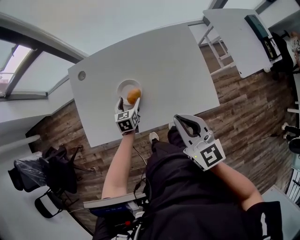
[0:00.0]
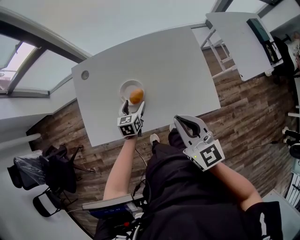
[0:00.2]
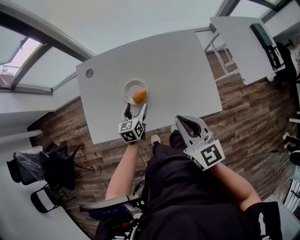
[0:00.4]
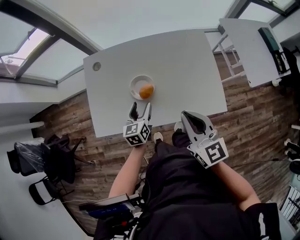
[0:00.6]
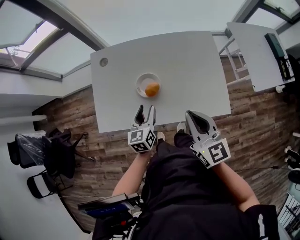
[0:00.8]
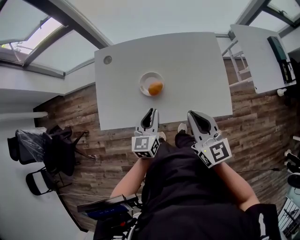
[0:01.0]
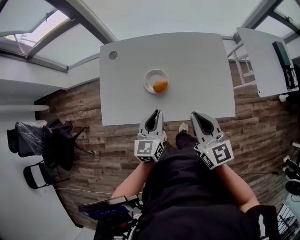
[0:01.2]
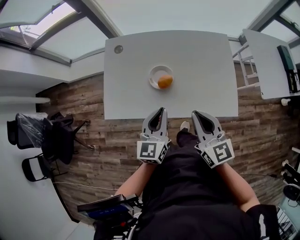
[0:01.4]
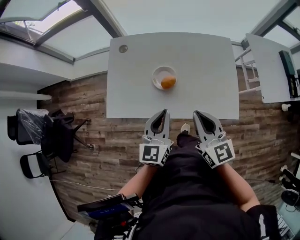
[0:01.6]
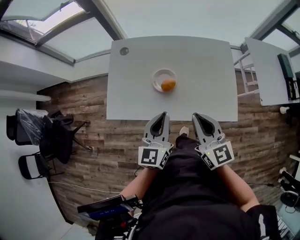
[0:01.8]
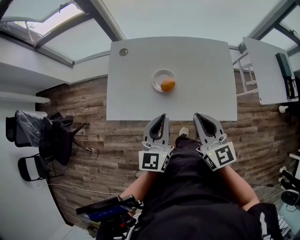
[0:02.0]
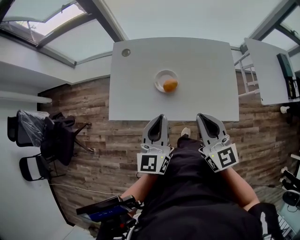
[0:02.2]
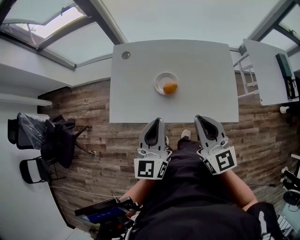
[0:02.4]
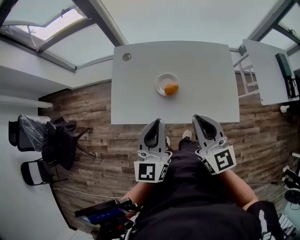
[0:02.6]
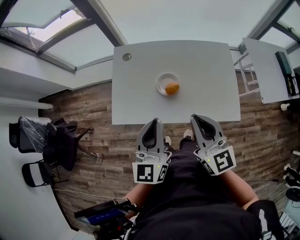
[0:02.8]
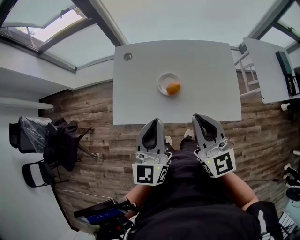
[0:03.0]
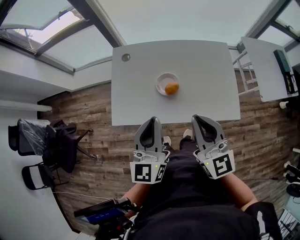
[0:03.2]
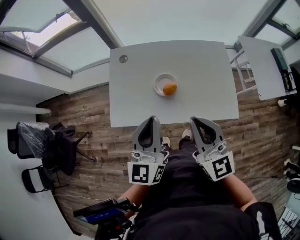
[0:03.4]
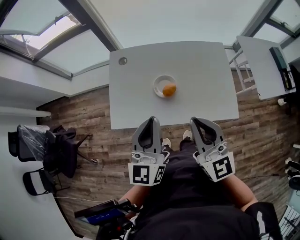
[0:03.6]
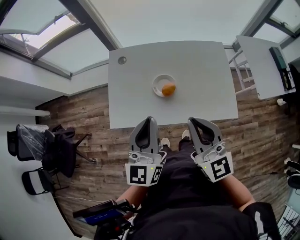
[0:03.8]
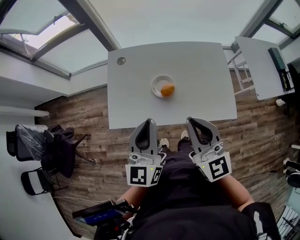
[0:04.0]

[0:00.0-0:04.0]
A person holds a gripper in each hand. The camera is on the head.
0.0 to 1.4 s: The left gripper goes about 25 cm upward and backward, turns by some 30 degrees, and closes up; the right gripper shifts by about 5 cm.
1.4 to 2.6 s: The left gripper moves upward and to the left, roughly 10 cm; the right gripper heads upward, covering some 5 cm.
2.6 to 4.0 s: The grippers make only small movements.

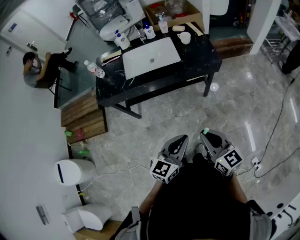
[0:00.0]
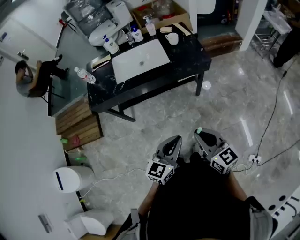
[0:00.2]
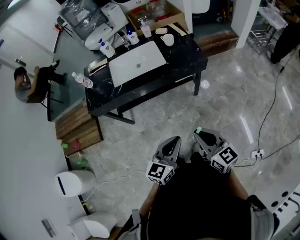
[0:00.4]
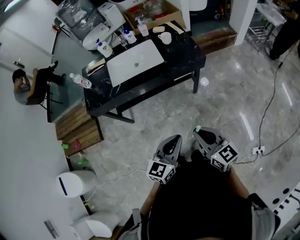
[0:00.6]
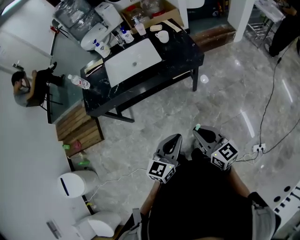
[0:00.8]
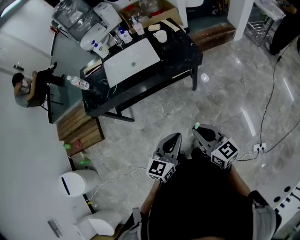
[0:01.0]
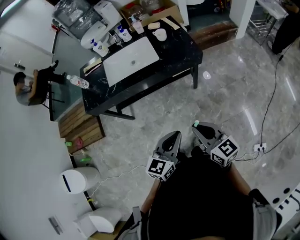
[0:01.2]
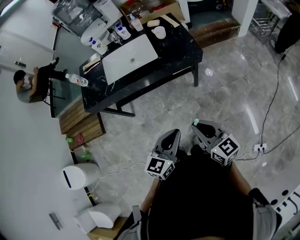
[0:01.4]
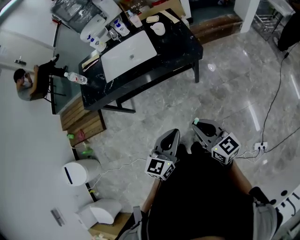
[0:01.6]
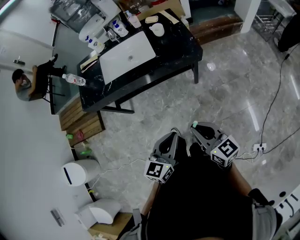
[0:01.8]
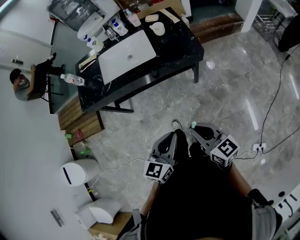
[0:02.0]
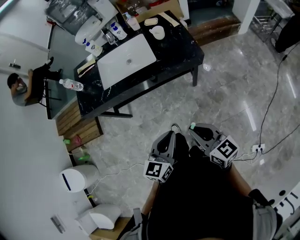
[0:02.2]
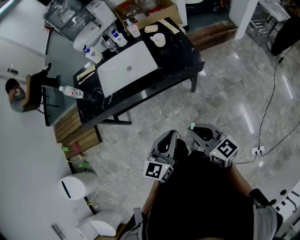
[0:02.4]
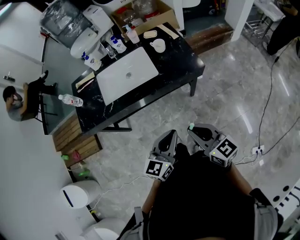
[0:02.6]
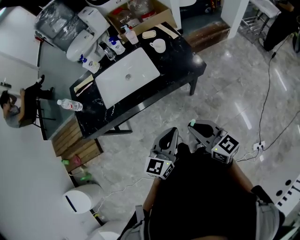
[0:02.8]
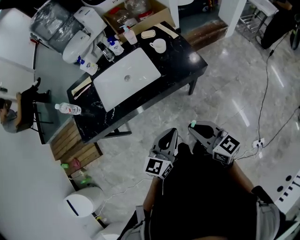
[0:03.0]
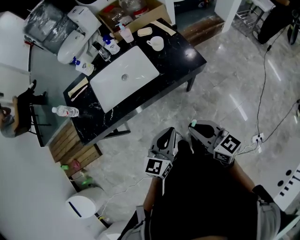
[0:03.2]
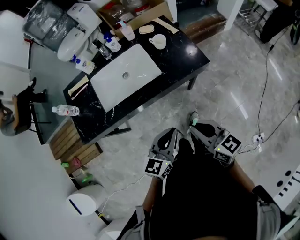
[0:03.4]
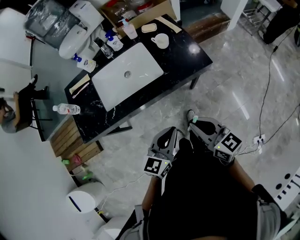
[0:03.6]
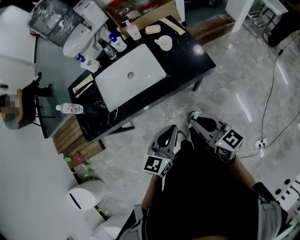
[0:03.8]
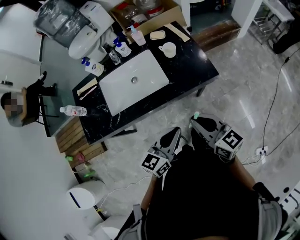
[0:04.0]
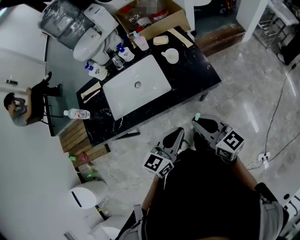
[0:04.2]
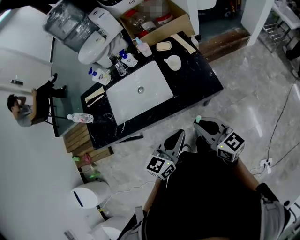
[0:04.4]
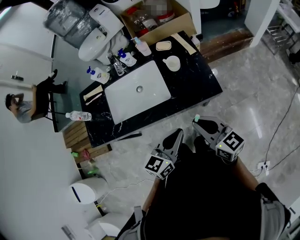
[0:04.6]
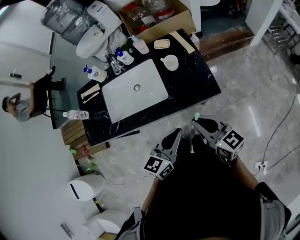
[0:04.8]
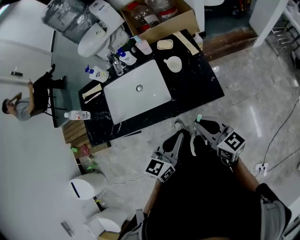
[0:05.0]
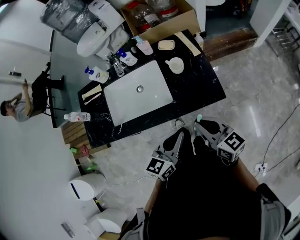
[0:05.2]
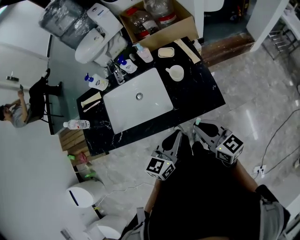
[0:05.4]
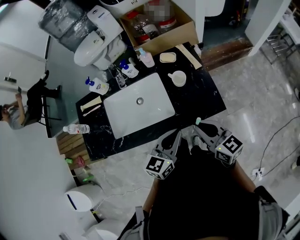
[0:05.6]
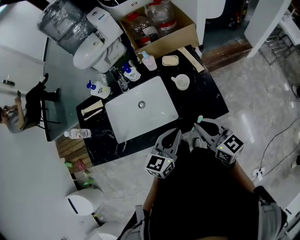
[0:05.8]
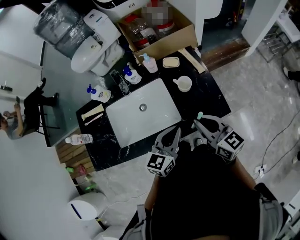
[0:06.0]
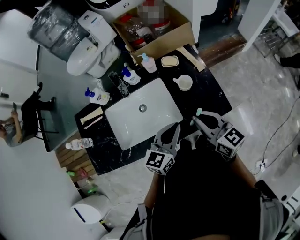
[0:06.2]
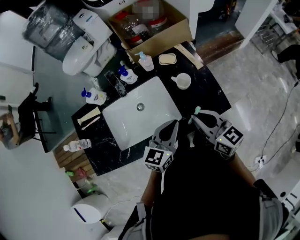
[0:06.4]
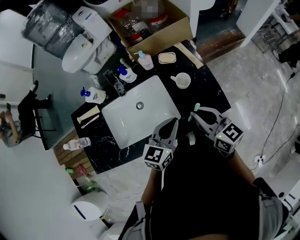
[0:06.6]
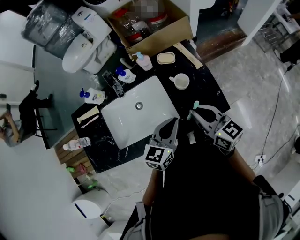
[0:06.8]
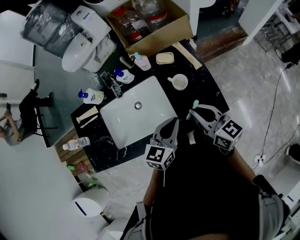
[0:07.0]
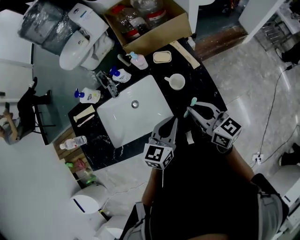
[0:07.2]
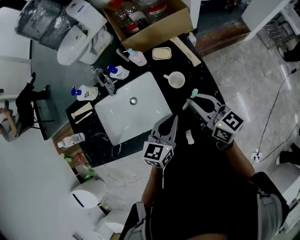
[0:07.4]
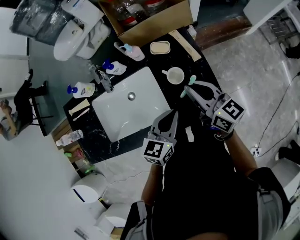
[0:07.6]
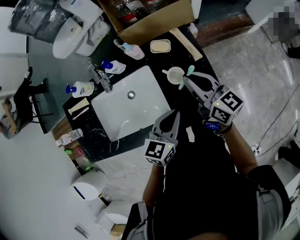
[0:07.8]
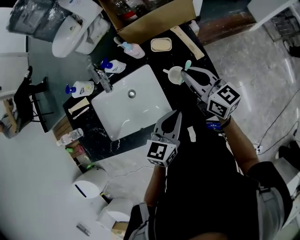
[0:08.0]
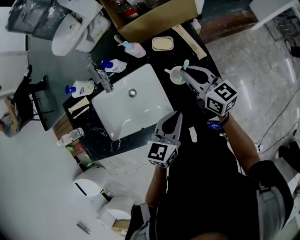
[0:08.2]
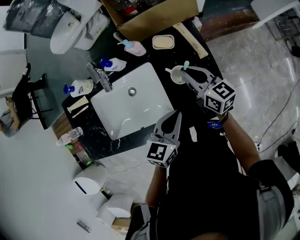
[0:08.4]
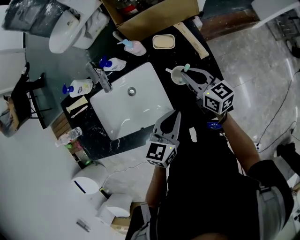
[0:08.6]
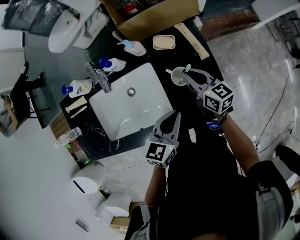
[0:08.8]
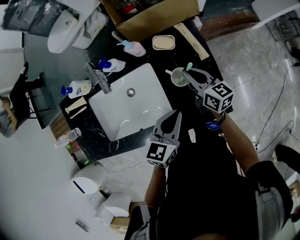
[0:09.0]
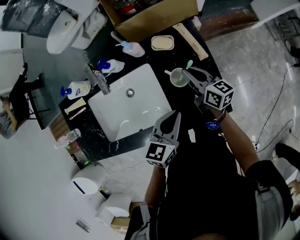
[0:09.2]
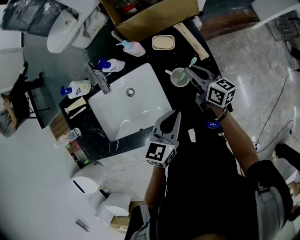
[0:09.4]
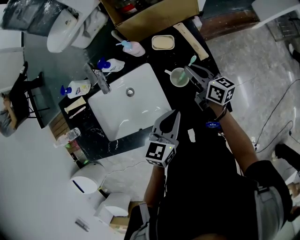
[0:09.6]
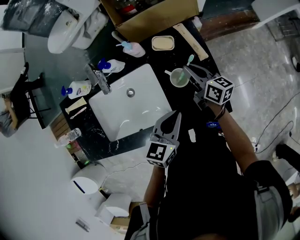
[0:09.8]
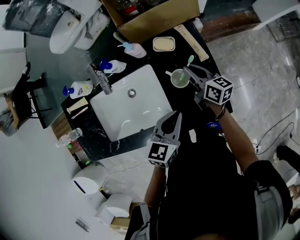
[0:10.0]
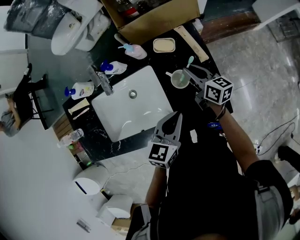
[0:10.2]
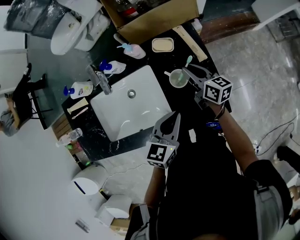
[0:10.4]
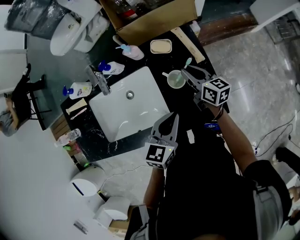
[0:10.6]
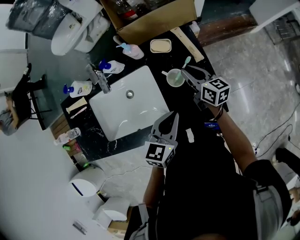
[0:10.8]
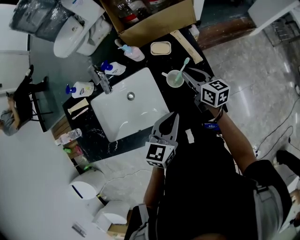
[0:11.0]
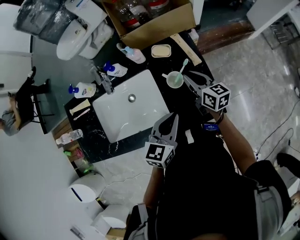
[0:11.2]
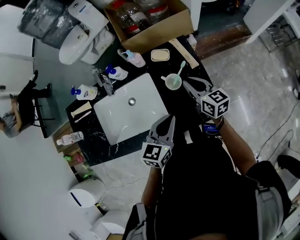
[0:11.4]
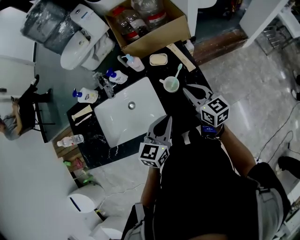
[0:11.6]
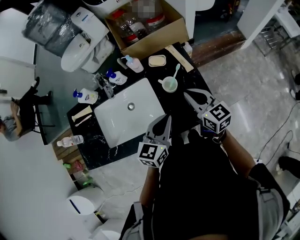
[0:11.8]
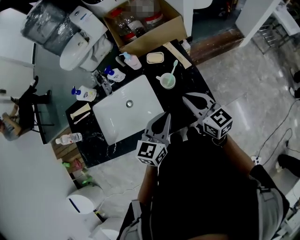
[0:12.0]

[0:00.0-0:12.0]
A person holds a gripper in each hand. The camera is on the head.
0.0 to 1.6 s: Both grippers move to the right, approximately 5 cm.
1.6 to 3.0 s: Both grippers move forward and to the left, some 20 cm.
3.0 to 4.4 s: The left gripper travels forward and to the right by roughly 15 cm, while the right gripper is displaced forward by approximately 15 cm.
4.4 to 6.0 s: The grippers both shift forward by approximately 15 cm.
6.0 to 7.6 s: The right gripper shifts about 15 cm forward. The left gripper moves forward and to the right, about 10 cm.
7.6 to 9.0 s: The right gripper goes roughly 15 cm downward and forward.
9.0 to 10.4 s: The grippers stay close to where they were, moving slightly.
10.4 to 12.0 s: The left gripper shifts about 5 cm upward; the right gripper goes some 20 cm backward and upward, and rotates some 30 degrees.

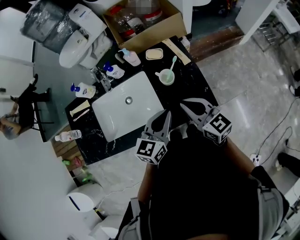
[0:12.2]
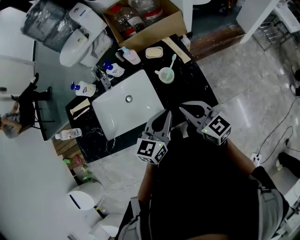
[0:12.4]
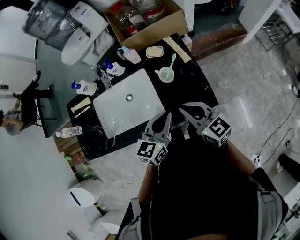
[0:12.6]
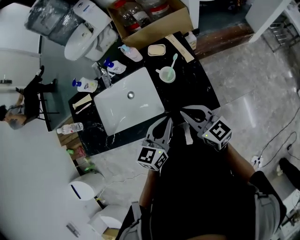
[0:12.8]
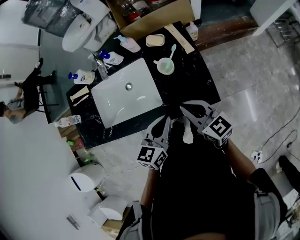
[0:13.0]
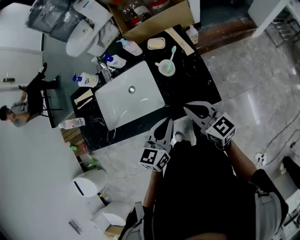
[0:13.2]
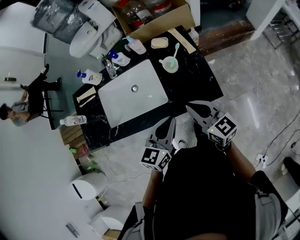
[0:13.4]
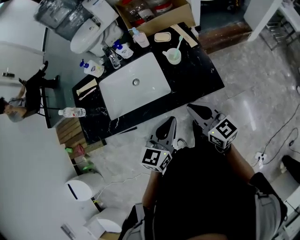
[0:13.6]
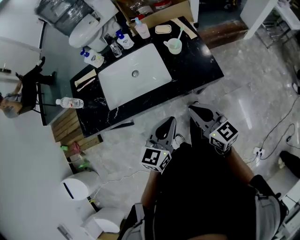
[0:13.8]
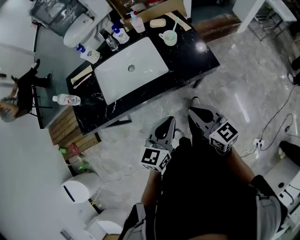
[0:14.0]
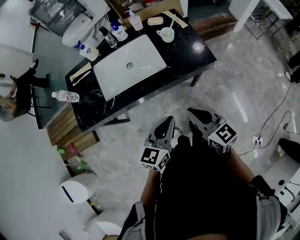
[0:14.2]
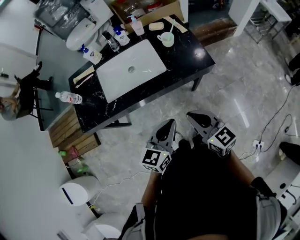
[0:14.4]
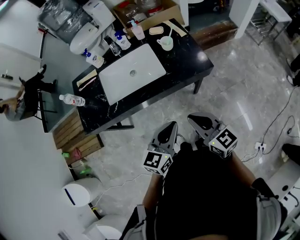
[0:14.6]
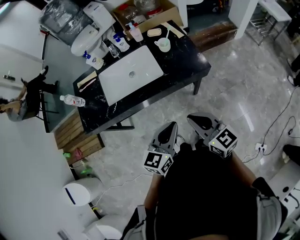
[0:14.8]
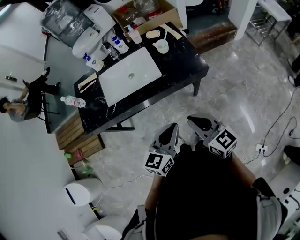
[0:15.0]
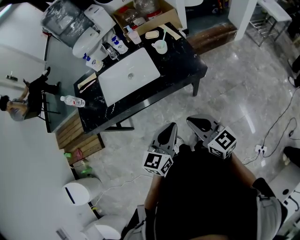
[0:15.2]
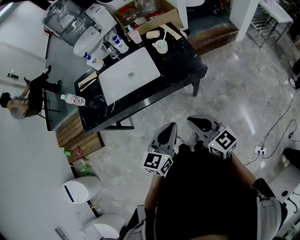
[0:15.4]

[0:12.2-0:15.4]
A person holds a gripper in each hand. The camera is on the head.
12.2 to 13.8 s: The left gripper heads backward and to the left, covering some 20 cm. Meanwhile the right gripper shifts approximately 20 cm backward.
13.8 to 15.4 s: Both grippers move backward, some 15 cm.

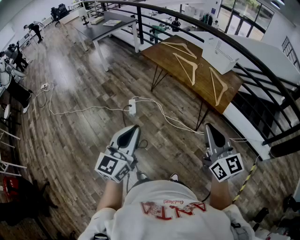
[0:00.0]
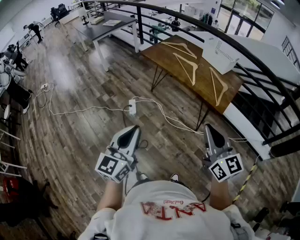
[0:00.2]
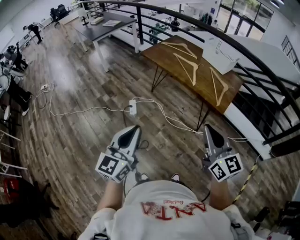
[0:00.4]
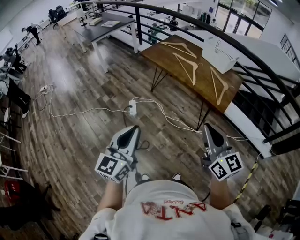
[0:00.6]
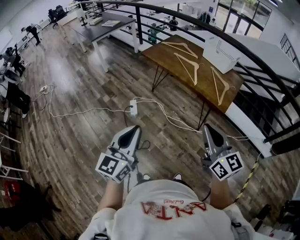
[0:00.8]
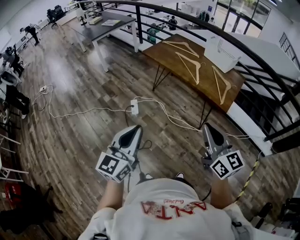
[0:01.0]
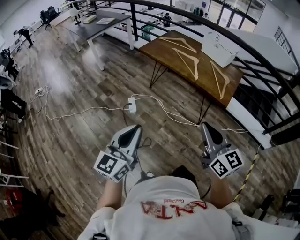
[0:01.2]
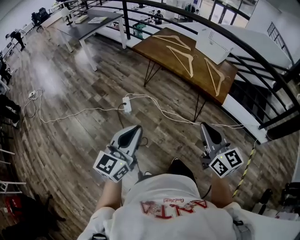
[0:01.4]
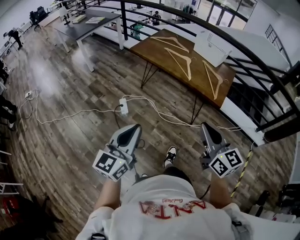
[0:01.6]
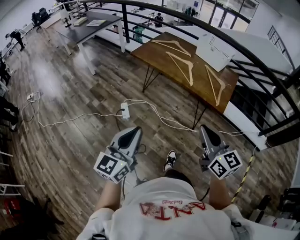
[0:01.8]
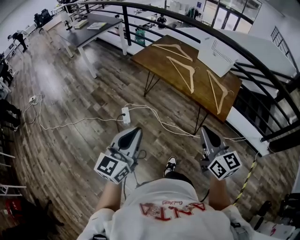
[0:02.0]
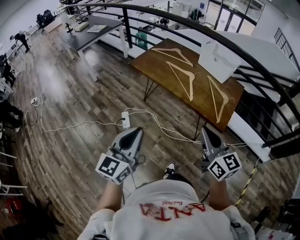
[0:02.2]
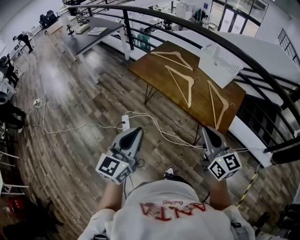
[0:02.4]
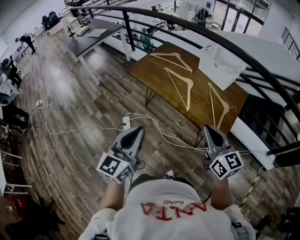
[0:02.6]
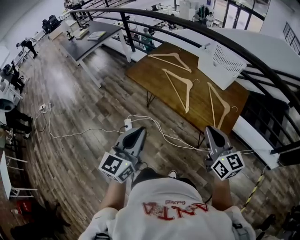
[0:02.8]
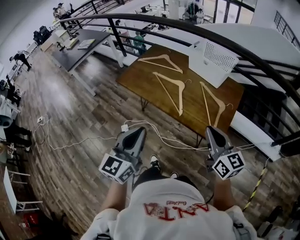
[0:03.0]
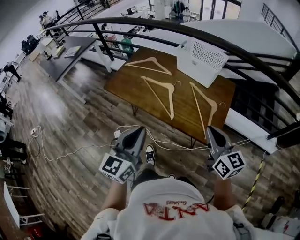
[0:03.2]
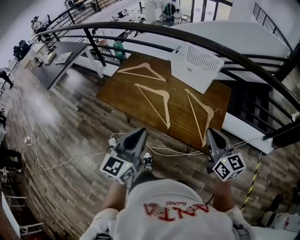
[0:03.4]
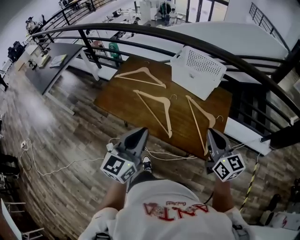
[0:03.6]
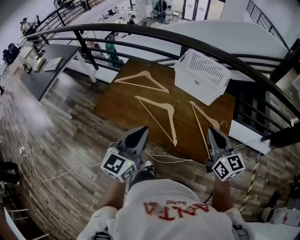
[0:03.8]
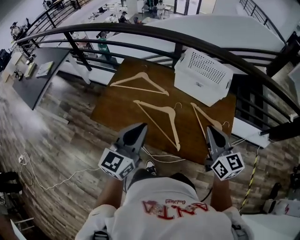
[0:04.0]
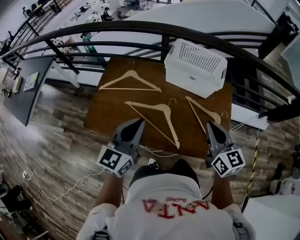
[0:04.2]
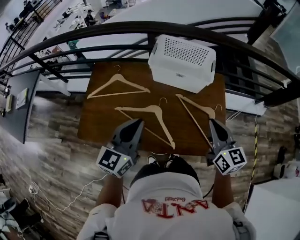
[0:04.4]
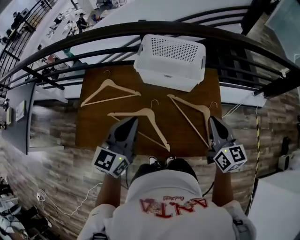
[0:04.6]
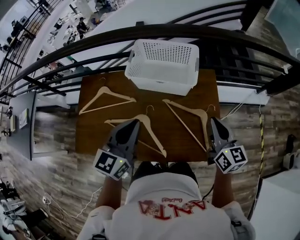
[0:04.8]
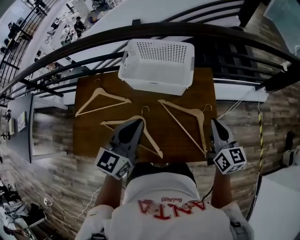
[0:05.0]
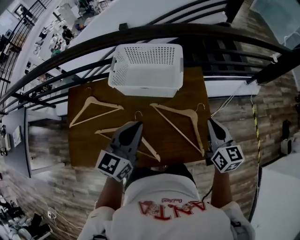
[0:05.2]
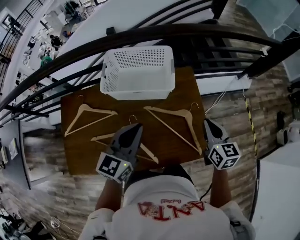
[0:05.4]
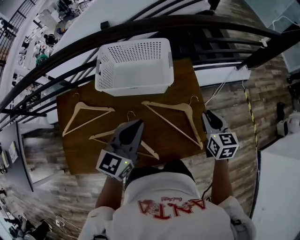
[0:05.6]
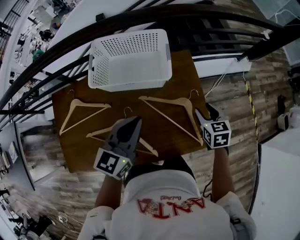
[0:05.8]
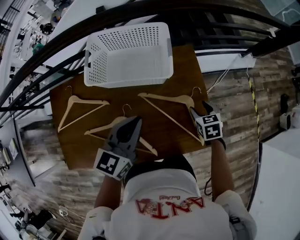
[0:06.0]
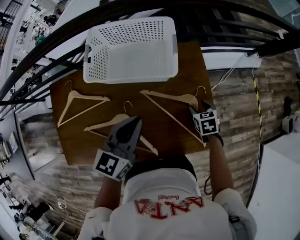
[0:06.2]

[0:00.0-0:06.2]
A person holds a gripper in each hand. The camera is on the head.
0.0 to 1.6 s: Both grippers move to the left, approximately 5 cm.
1.6 to 3.2 s: Both grippers are carried forward and to the right, some 40 cm.
3.2 to 4.6 s: The left gripper changes place by some 40 cm, and changes its angle by approximately 30 degrees. The right gripper moves approximately 25 cm, and changes its angle by some 30 degrees.
4.6 to 6.2 s: The right gripper travels downward by about 30 cm, points its fingers some 50 degrees further downward, and opens its fingers. Meanwhile the left gripper shifts about 20 cm forward, to the right and downward.
